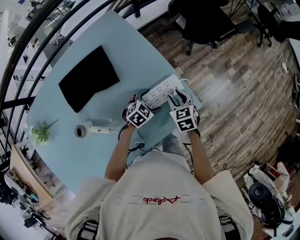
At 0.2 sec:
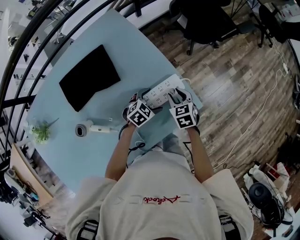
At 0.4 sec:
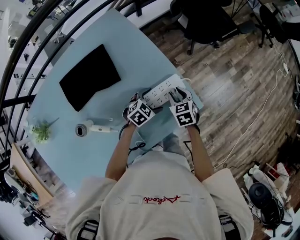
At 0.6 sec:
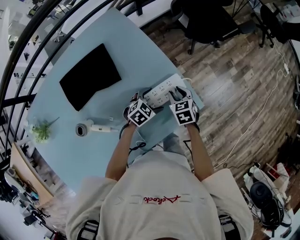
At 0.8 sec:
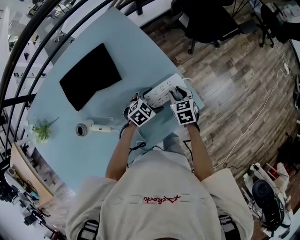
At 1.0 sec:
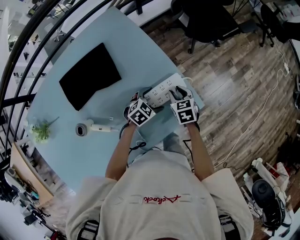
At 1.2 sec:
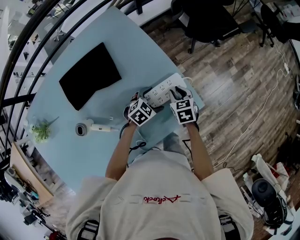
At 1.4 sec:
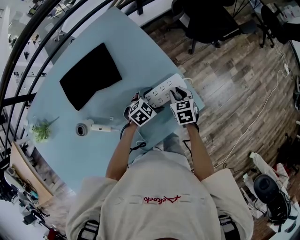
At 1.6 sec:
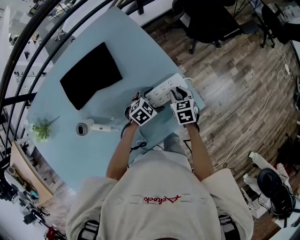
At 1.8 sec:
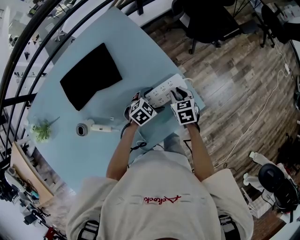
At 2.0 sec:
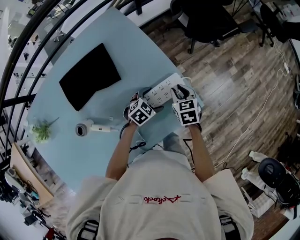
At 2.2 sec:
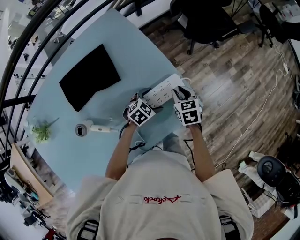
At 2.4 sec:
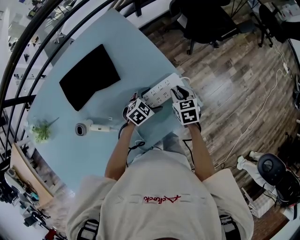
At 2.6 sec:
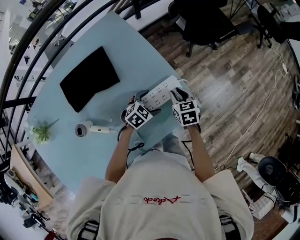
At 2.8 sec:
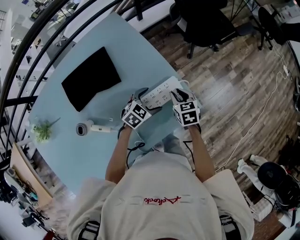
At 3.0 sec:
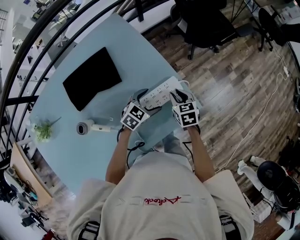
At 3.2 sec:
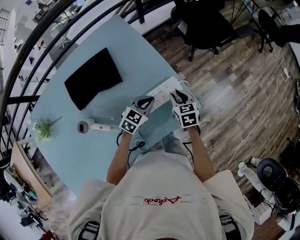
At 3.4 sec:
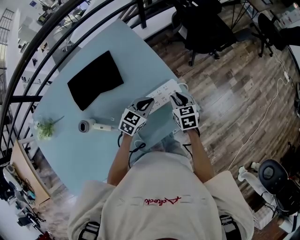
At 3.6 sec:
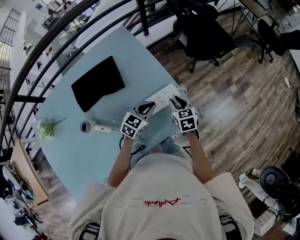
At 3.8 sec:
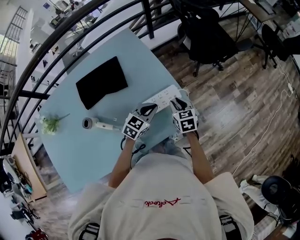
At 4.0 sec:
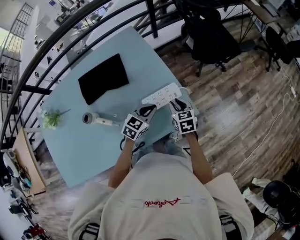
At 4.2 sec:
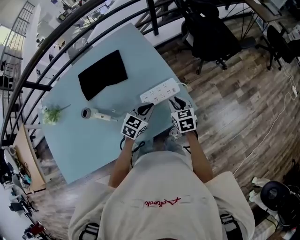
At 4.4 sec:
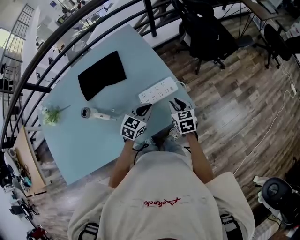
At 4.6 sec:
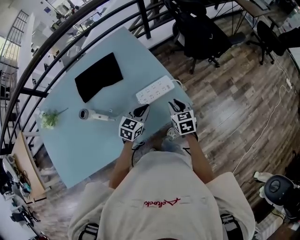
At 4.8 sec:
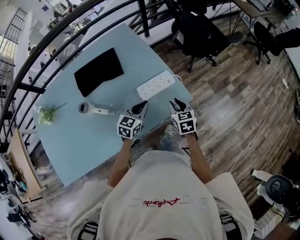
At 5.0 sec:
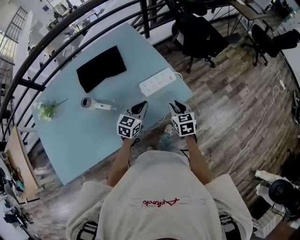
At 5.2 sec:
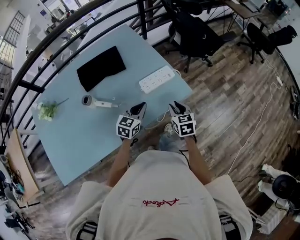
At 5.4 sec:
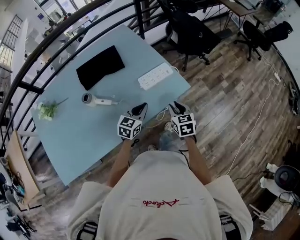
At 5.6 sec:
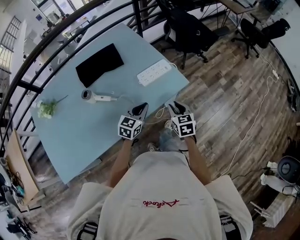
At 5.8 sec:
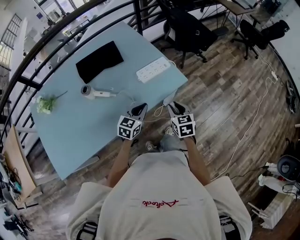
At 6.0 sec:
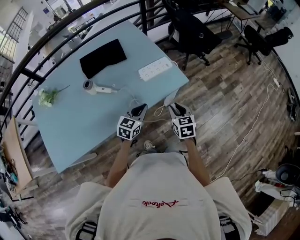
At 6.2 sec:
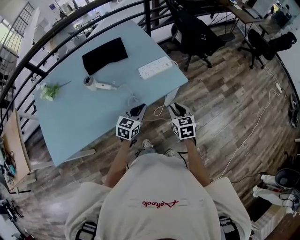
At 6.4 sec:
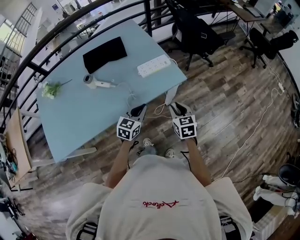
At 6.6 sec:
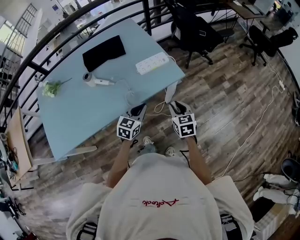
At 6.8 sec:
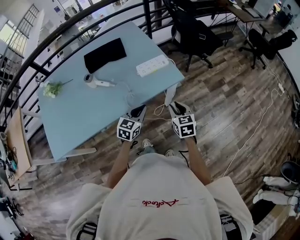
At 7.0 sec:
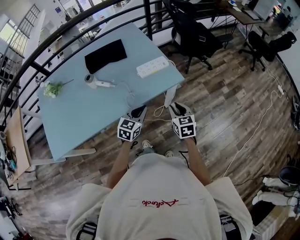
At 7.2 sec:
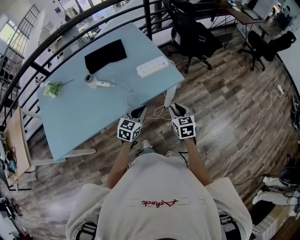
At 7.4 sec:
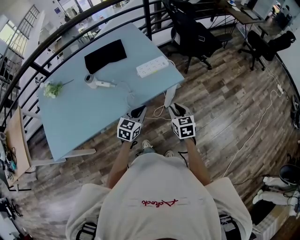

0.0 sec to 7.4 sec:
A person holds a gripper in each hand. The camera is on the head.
0.0 sec to 1.4 sec: The grippers make only small movements.
1.4 sec to 3.0 sec: The left gripper shifts approximately 5 cm upward.
3.0 sec to 4.4 sec: The right gripper moves backward, approximately 5 cm; the left gripper goes some 10 cm backward and upward, swivels approximately 20 degrees, and closes up.
4.4 sec to 6.0 sec: The two grippers go about 20 cm backward.
6.0 sec to 7.4 sec: The right gripper ends up roughly 5 cm from where it was. The left gripper is displaced backward by some 5 cm.

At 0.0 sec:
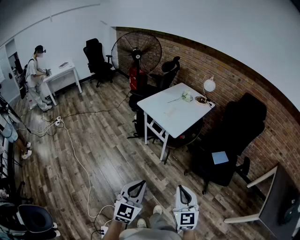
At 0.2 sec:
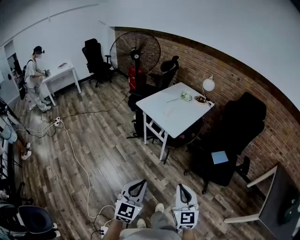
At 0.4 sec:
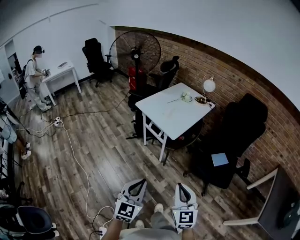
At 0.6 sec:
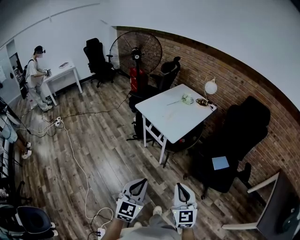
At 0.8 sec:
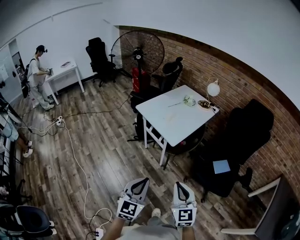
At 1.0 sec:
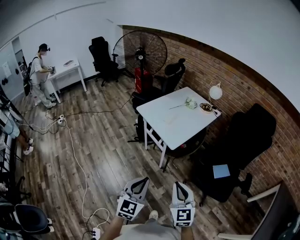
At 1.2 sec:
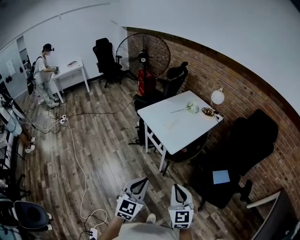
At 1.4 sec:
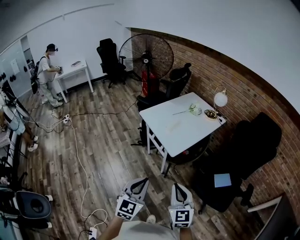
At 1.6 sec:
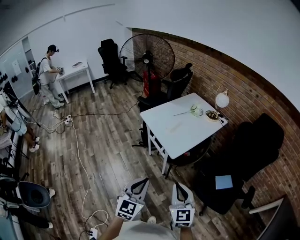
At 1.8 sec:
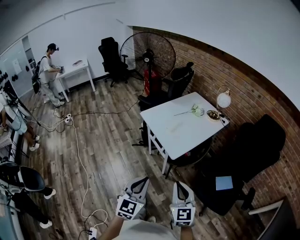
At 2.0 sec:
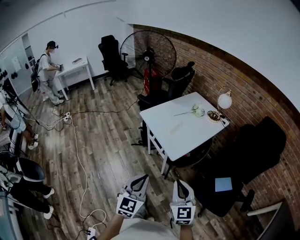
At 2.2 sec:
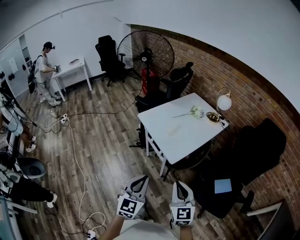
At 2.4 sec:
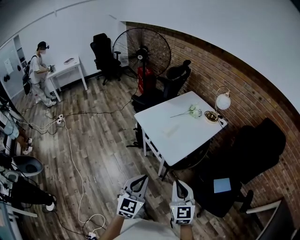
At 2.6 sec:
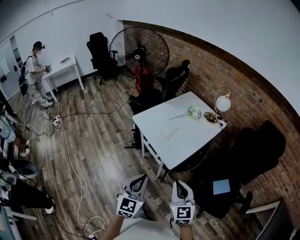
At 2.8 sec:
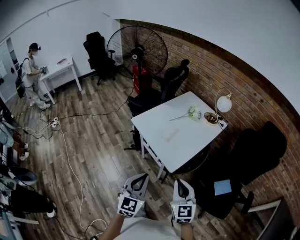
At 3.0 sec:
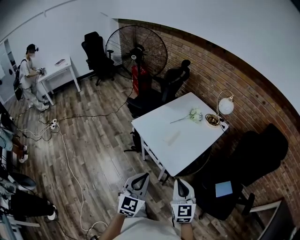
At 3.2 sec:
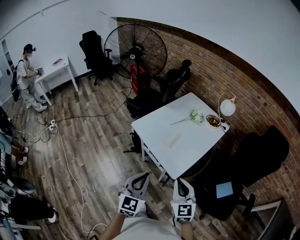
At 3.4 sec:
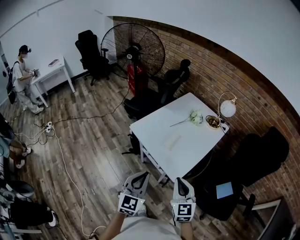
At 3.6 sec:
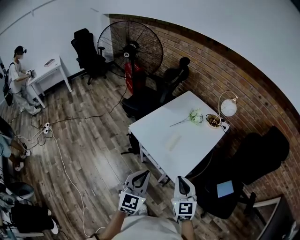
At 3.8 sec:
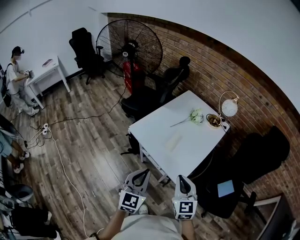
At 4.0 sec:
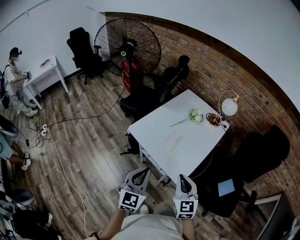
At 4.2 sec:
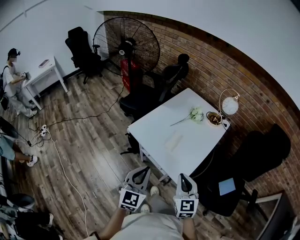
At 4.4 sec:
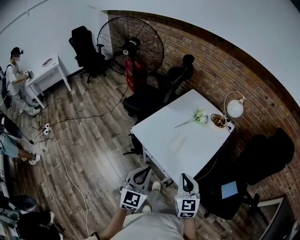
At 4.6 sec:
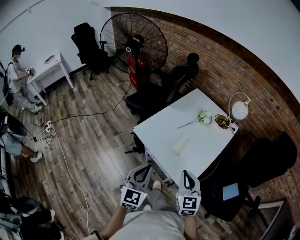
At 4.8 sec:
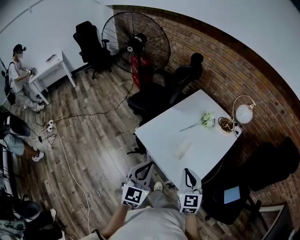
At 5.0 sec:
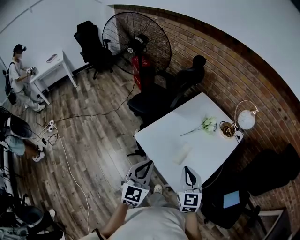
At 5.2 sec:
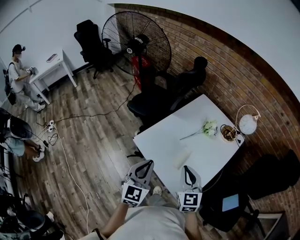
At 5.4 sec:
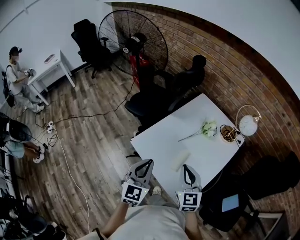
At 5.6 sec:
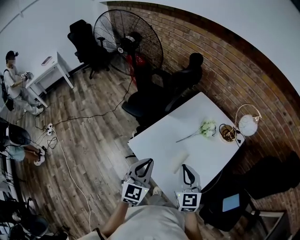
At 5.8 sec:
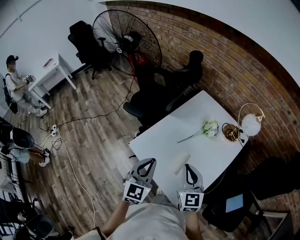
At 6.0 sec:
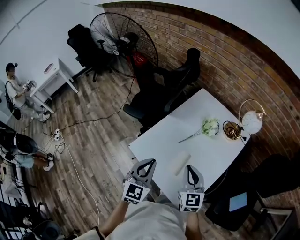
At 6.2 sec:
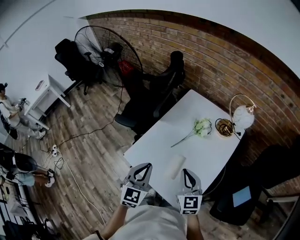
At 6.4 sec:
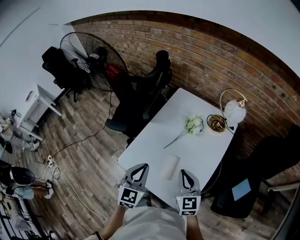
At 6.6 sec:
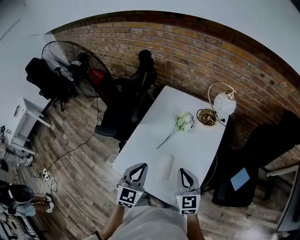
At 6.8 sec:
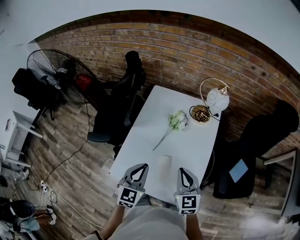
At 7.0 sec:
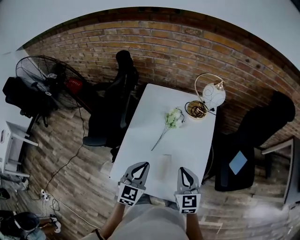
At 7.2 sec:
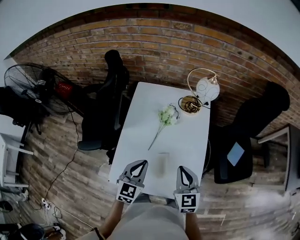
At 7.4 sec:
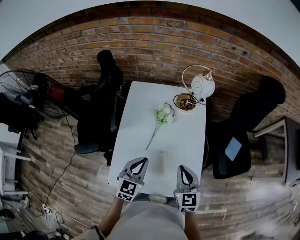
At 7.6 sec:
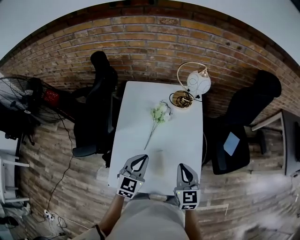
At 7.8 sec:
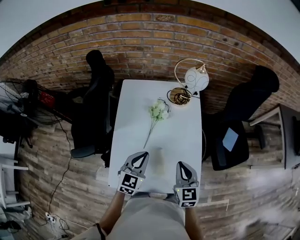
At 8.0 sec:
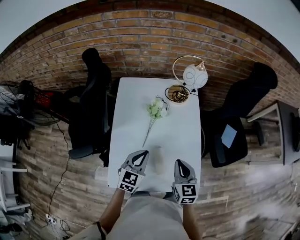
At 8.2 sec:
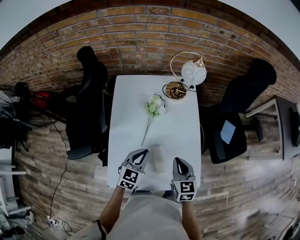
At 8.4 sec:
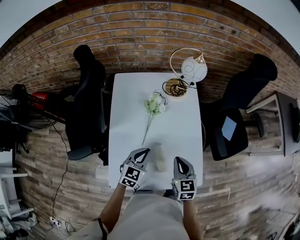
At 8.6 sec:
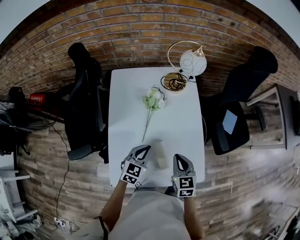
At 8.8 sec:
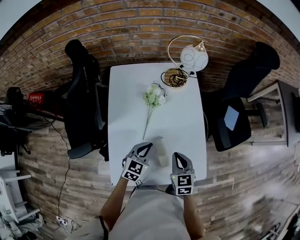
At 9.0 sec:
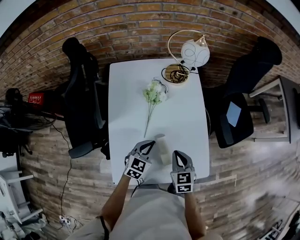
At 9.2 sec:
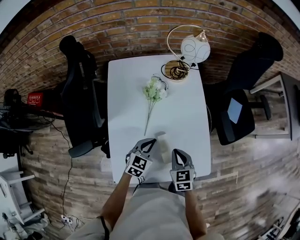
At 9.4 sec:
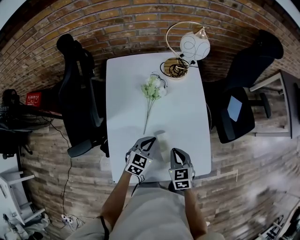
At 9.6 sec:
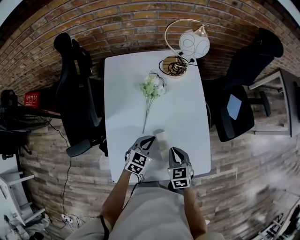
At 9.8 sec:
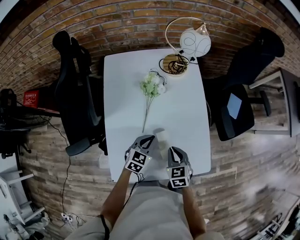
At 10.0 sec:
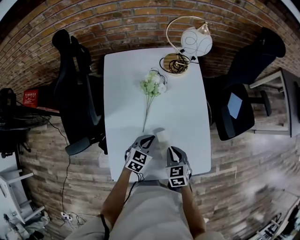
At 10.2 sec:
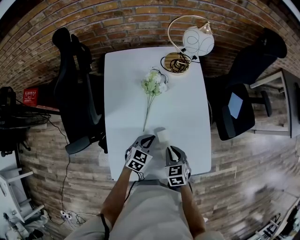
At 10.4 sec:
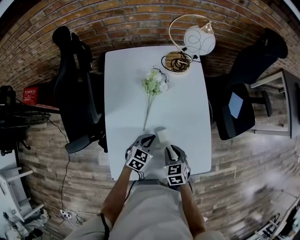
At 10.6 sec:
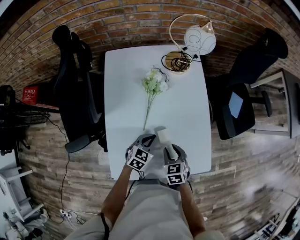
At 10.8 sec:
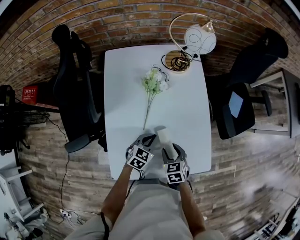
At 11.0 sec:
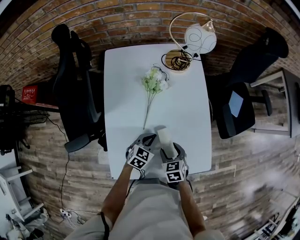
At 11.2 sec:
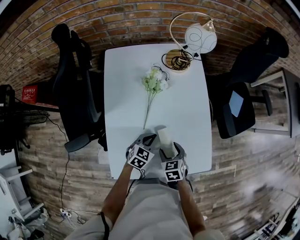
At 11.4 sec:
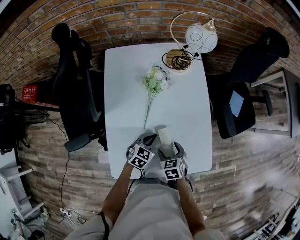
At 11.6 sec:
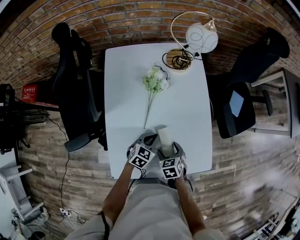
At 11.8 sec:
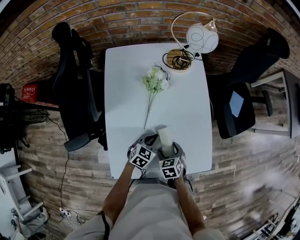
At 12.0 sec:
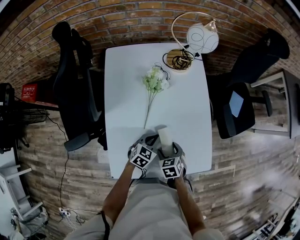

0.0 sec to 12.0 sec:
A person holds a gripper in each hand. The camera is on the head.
0.0 sec to 1.6 sec: The right gripper travels forward by some 25 cm. The left gripper moves forward and to the right, some 25 cm.
1.6 sec to 3.0 sec: Both grippers move forward, some 20 cm.
3.0 sec to 4.4 sec: The two grippers go approximately 15 cm forward and to the left.
4.4 sec to 6.0 sec: Both grippers move forward, about 25 cm.
6.0 sec to 7.6 sec: The left gripper shifts by approximately 15 cm, and changes its angle by some 40 degrees; the right gripper travels downward by about 5 cm, and changes its angle by roughly 40 degrees.
7.6 sec to 9.0 sec: The grippers both shift downward by about 15 cm. The left gripper swivels about 20 degrees.
9.0 sec to 10.4 sec: The grippers both shift downward by about 5 cm.
10.4 sec to 12.0 sec: The right gripper is displaced downward by roughly 5 cm, and opens.

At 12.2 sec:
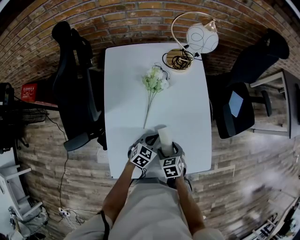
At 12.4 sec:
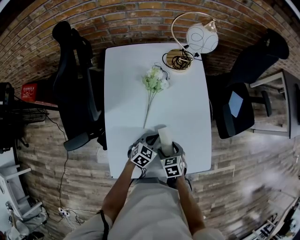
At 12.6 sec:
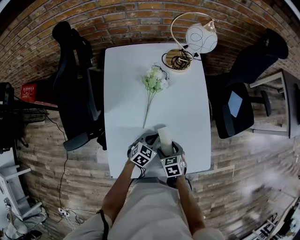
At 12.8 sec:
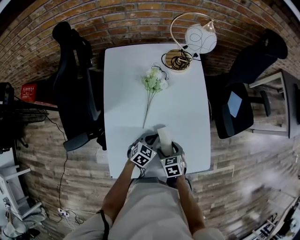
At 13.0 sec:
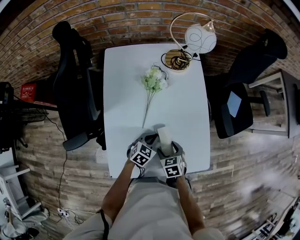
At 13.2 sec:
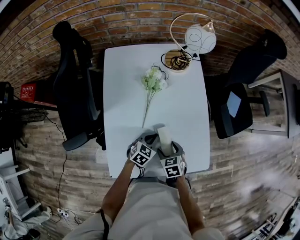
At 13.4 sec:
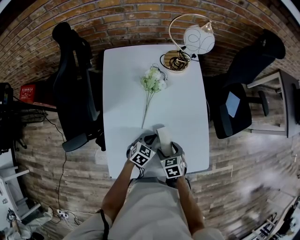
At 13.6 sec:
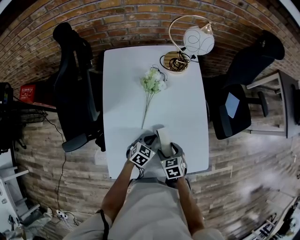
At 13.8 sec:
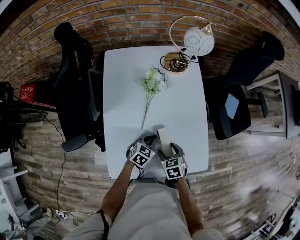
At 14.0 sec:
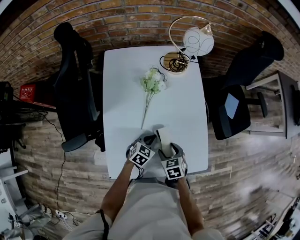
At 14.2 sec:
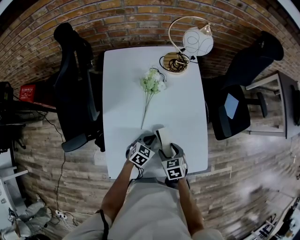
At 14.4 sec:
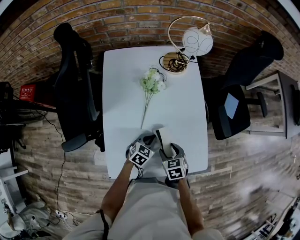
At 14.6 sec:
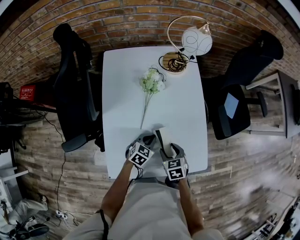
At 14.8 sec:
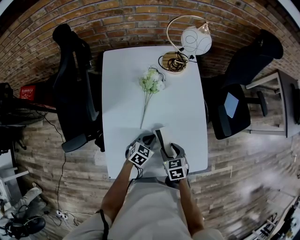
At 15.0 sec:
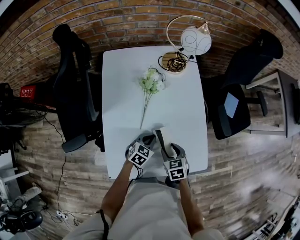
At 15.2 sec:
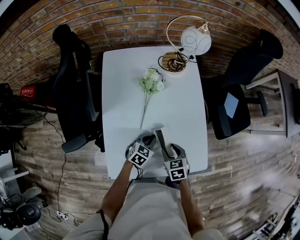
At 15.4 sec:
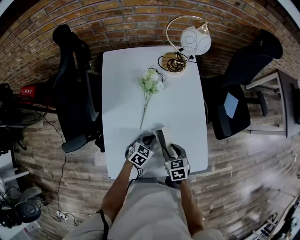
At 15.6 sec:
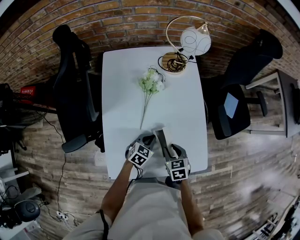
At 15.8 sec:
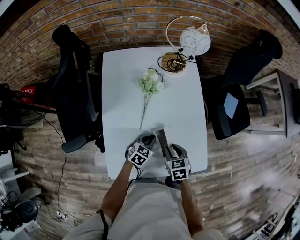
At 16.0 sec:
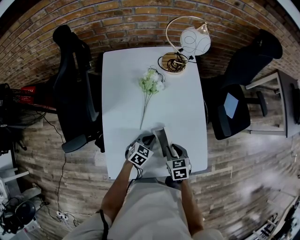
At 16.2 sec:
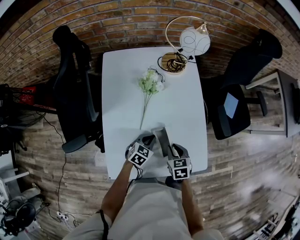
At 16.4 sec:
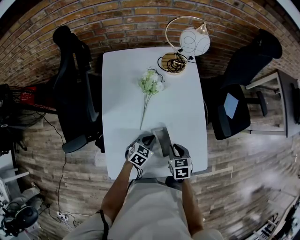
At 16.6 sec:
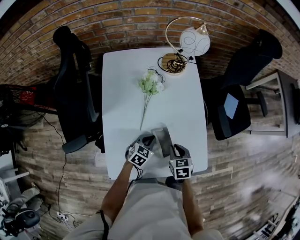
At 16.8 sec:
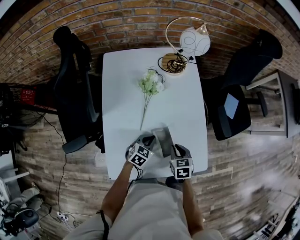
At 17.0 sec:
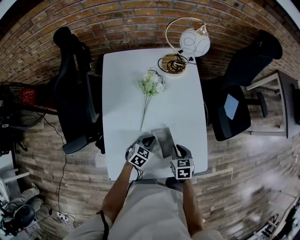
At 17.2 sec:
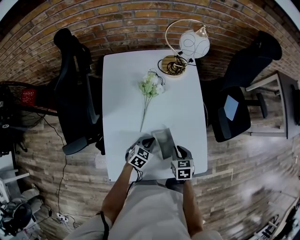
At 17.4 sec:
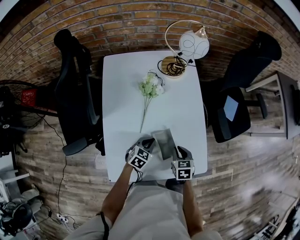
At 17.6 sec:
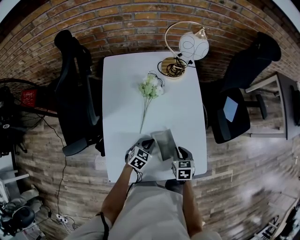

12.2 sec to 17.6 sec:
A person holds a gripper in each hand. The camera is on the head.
12.2 sec to 15.0 sec: The grippers move only a little.
15.0 sec to 16.2 sec: The grippers make only small movements.
16.2 sec to 17.6 sec: The grippers stay close to where they were, moving slightly.
